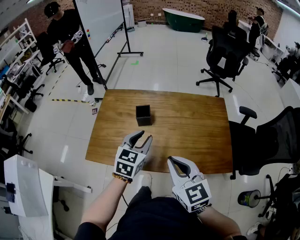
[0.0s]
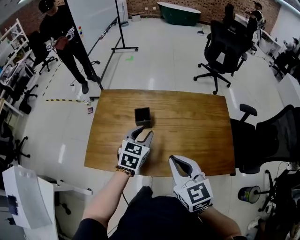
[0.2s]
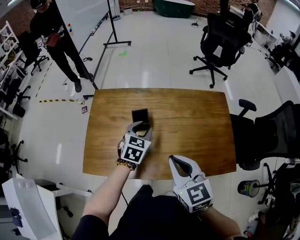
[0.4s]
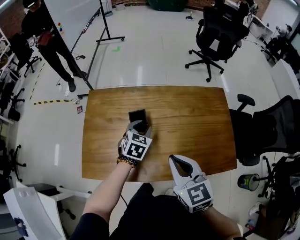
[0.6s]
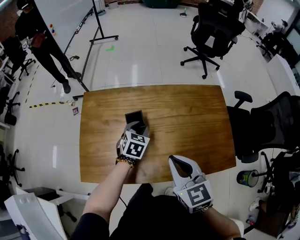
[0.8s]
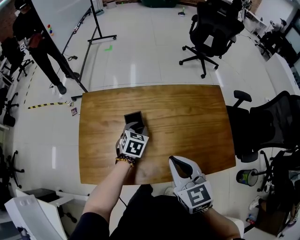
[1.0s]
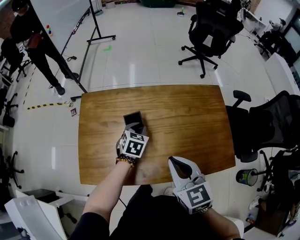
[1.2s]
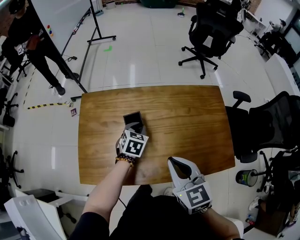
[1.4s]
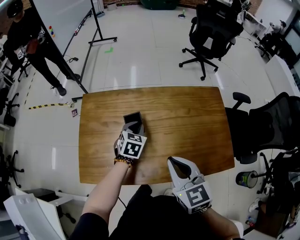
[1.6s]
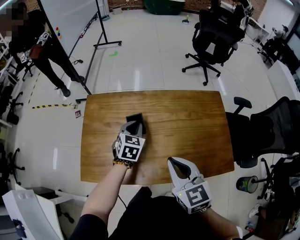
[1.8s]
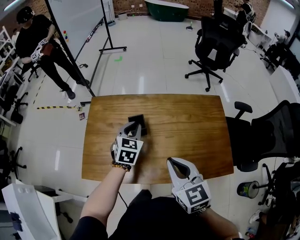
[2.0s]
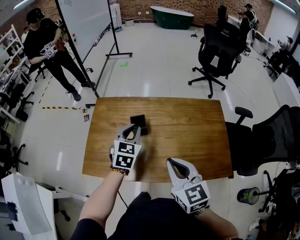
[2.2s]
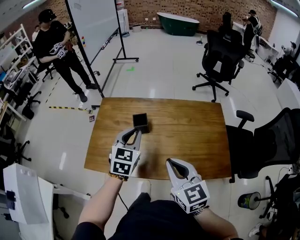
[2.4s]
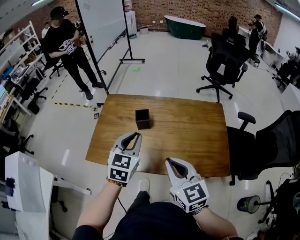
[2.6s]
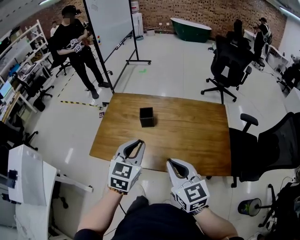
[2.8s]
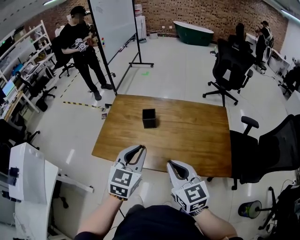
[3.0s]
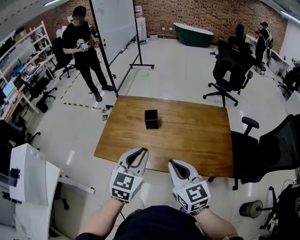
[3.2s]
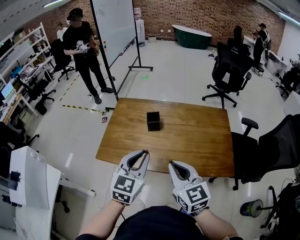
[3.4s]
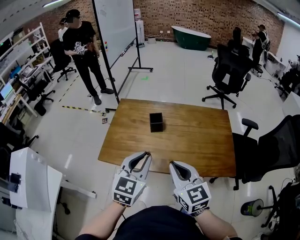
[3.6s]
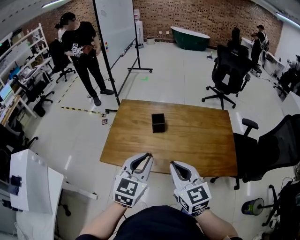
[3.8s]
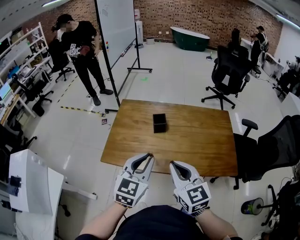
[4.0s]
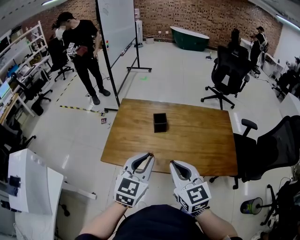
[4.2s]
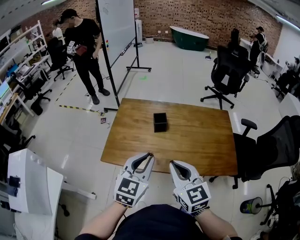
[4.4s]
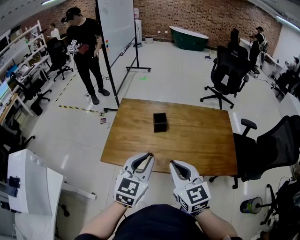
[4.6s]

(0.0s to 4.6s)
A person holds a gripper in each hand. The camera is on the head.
0.0s - 1.6s: The left gripper shifts some 25 cm forward and downward. Meanwhile the right gripper goes about 15 cm forward.
1.6s - 3.0s: The left gripper is displaced backward and upward by roughly 40 cm, and changes its angle by about 30 degrees. The right gripper goes some 20 cm backward.
3.0s - 4.6s: Both grippers travel together to the left, about 10 cm.

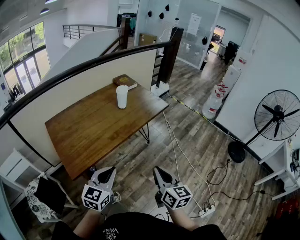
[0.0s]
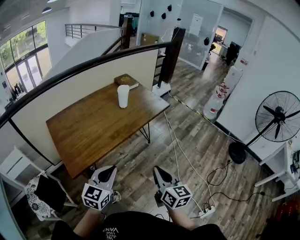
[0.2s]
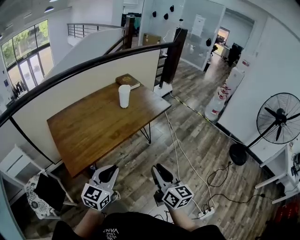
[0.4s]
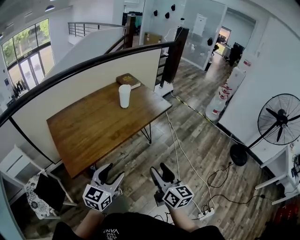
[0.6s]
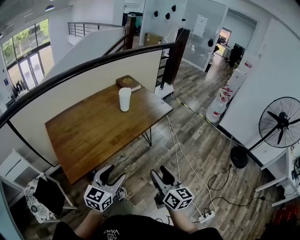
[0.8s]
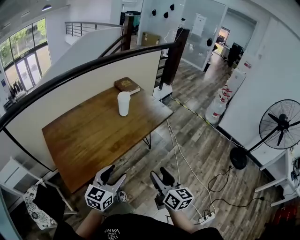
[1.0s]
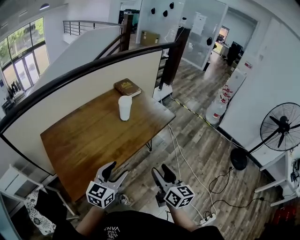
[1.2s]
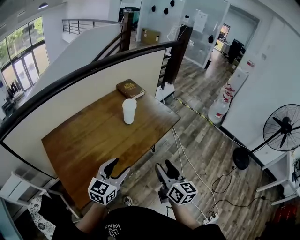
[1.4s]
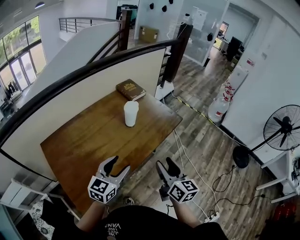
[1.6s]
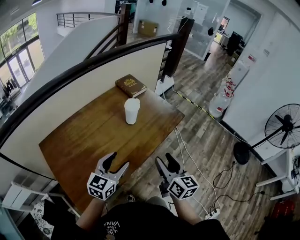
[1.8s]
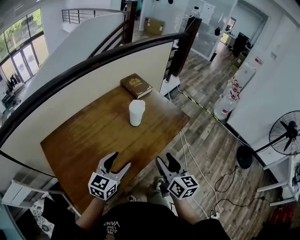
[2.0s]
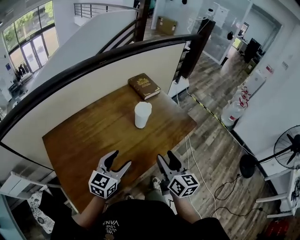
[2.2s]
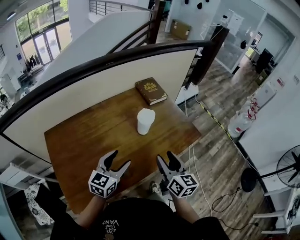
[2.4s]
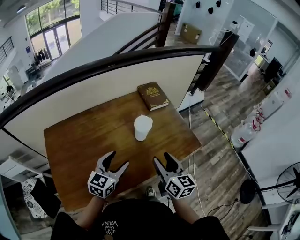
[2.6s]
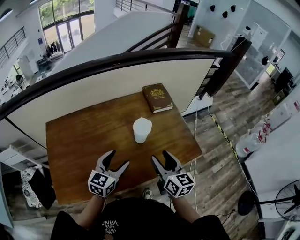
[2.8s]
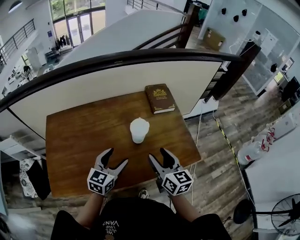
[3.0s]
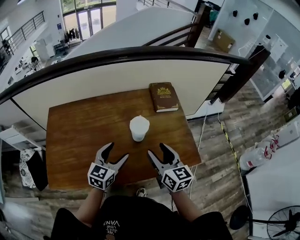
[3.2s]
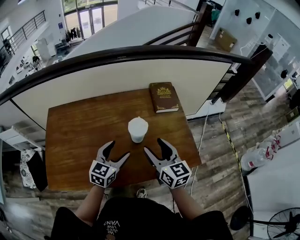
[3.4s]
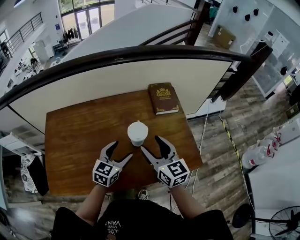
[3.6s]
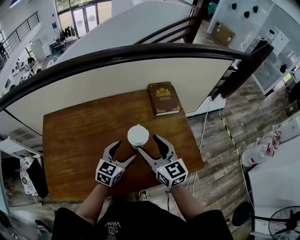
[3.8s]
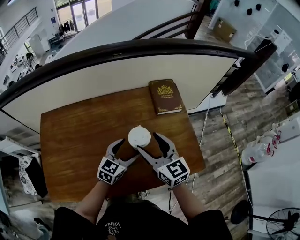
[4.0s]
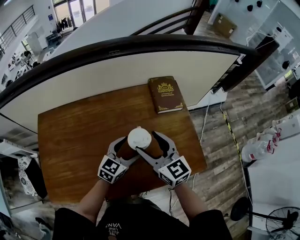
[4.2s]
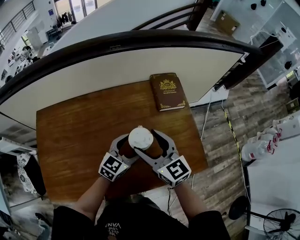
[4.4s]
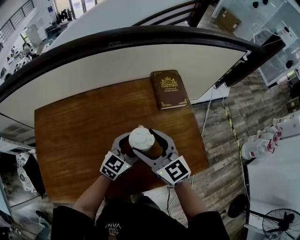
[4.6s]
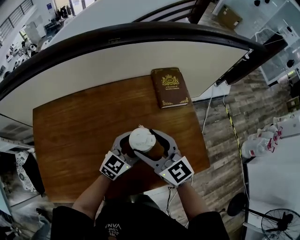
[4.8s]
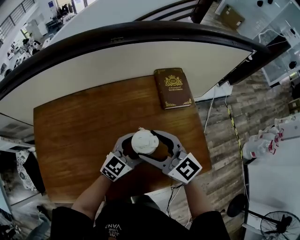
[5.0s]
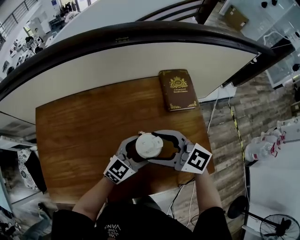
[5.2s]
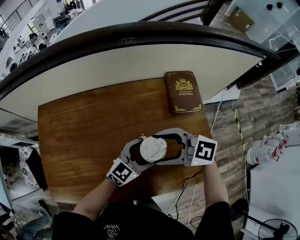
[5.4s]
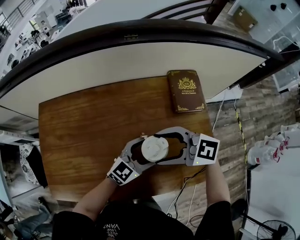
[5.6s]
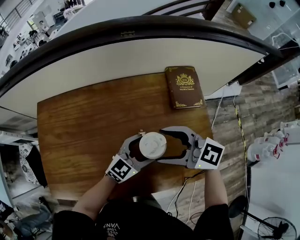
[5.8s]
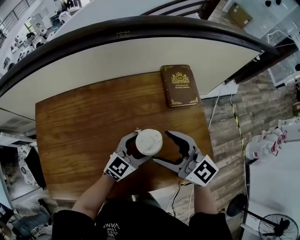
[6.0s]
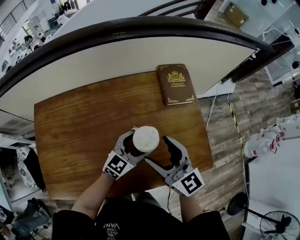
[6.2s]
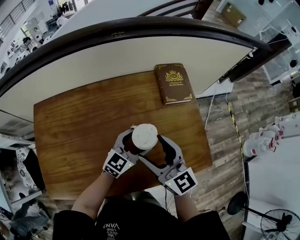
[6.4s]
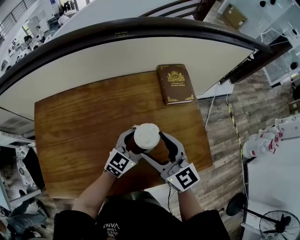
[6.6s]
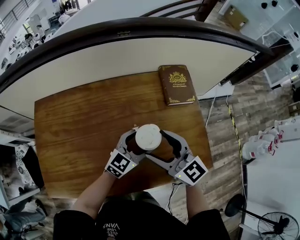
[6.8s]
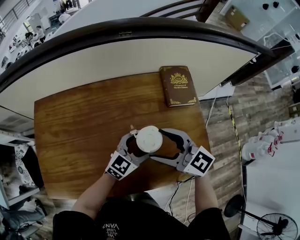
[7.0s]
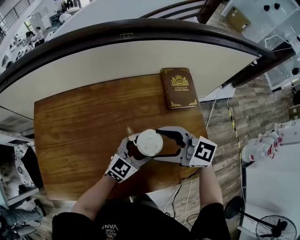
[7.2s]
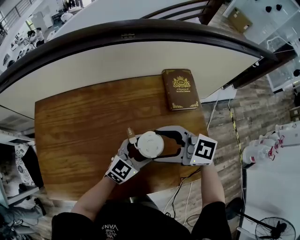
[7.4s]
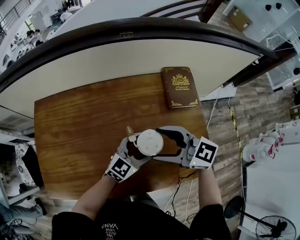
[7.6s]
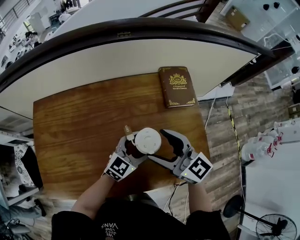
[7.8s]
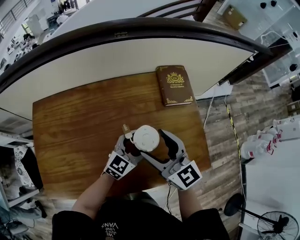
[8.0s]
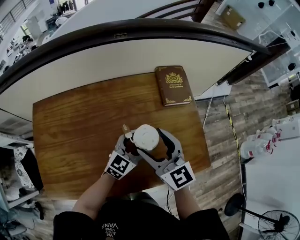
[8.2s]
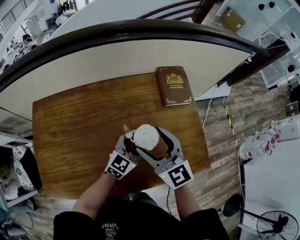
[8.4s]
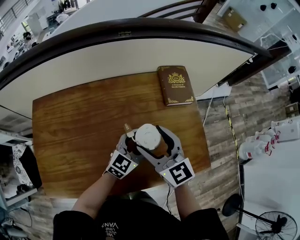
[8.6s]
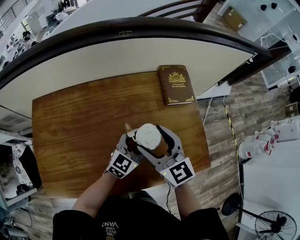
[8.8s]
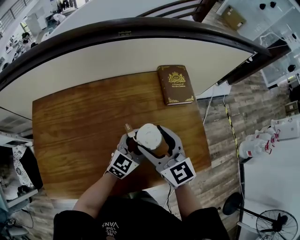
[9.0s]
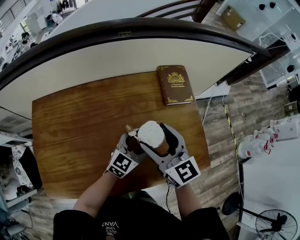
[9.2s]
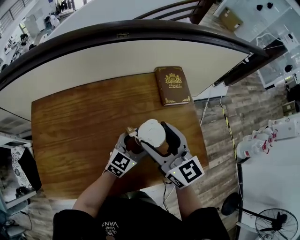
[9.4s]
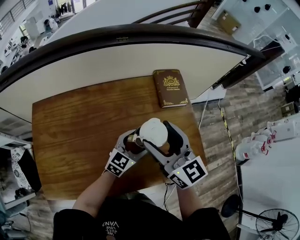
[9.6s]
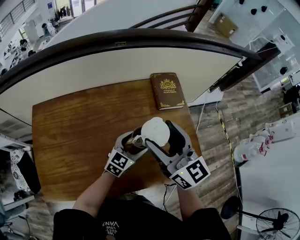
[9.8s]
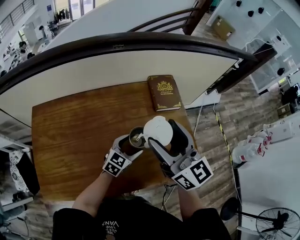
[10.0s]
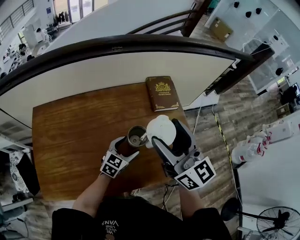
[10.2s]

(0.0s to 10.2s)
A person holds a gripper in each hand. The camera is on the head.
0.0s - 1.4s: The grippers both shift forward by about 20 cm. The left gripper opens; the right gripper opens.
1.4s - 3.0s: The left gripper changes place by approximately 25 cm, and changes its angle by roughly 30 degrees; the right gripper changes place by approximately 30 cm, and changes its angle by roughly 40 degrees.
3.0s - 4.4s: The left gripper shifts some 15 cm forward, to the right and downward, while the right gripper goes roughly 15 cm forward and to the left, and rotates approximately 20 degrees.
4.4s - 5.8s: The right gripper swivels approximately 40 degrees.
7.2s - 8.8s: The right gripper rotates approximately 40 degrees.
8.8s - 10.2s: The right gripper goes approximately 15 cm upward and to the right, and swivels approximately 20 degrees.

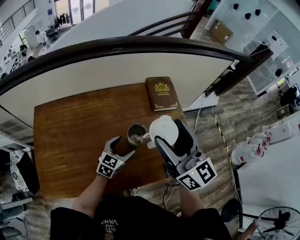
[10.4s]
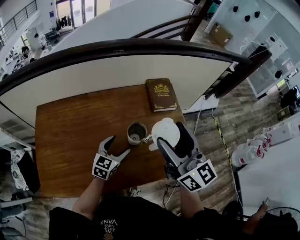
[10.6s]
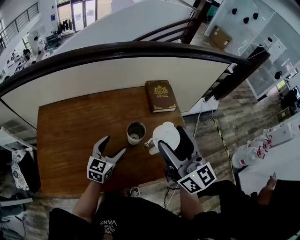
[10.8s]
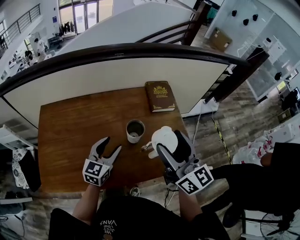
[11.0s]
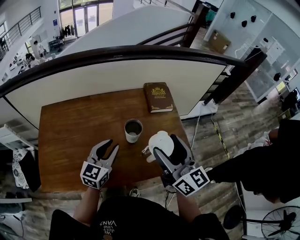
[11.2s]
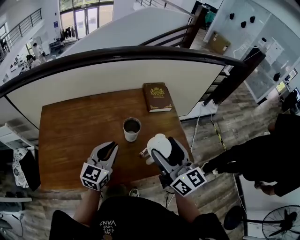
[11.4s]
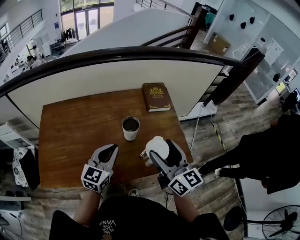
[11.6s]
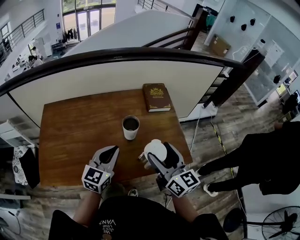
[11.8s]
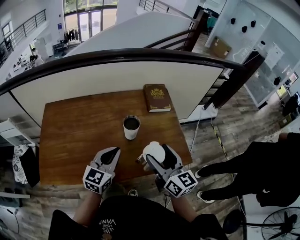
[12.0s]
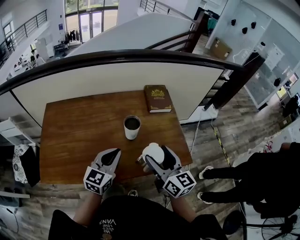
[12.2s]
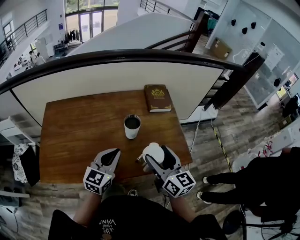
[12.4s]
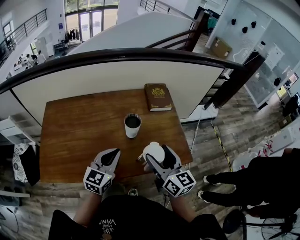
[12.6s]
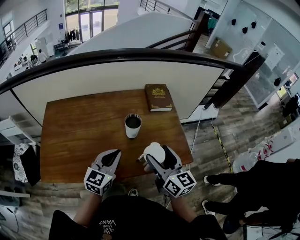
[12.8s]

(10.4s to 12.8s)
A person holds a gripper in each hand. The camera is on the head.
10.4s - 11.6s: The right gripper goes approximately 10 cm backward and downward. The left gripper is displaced upward and backward by roughly 15 cm, and closes up.
11.6s - 12.8s: The right gripper changes place by roughly 5 cm.

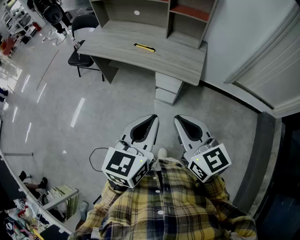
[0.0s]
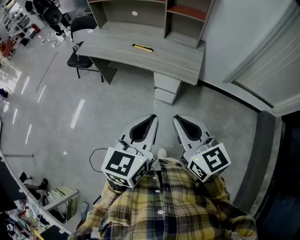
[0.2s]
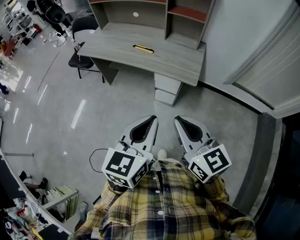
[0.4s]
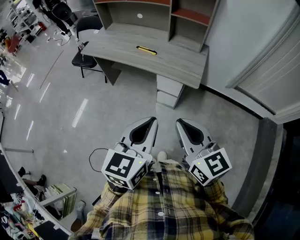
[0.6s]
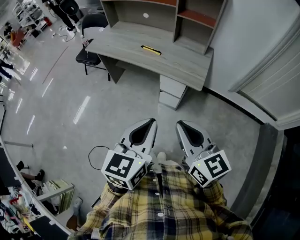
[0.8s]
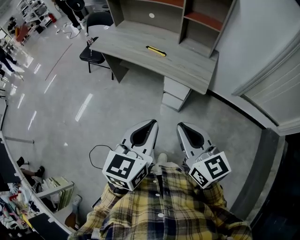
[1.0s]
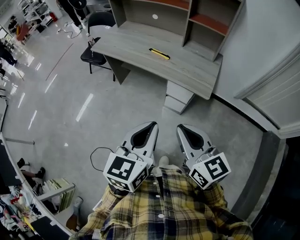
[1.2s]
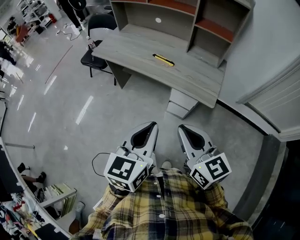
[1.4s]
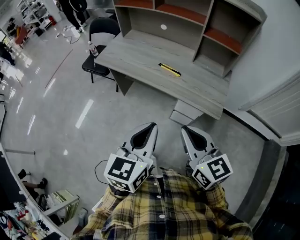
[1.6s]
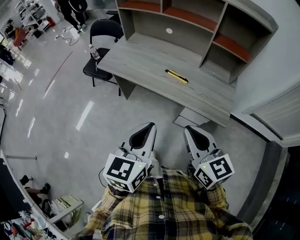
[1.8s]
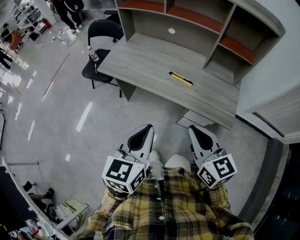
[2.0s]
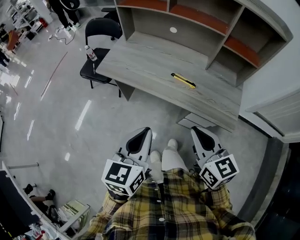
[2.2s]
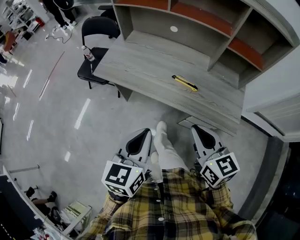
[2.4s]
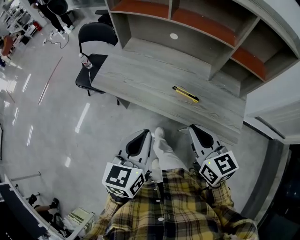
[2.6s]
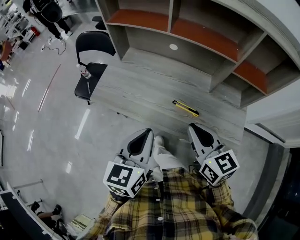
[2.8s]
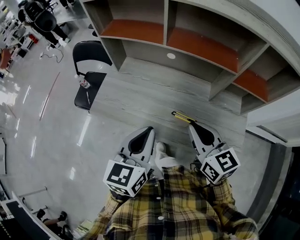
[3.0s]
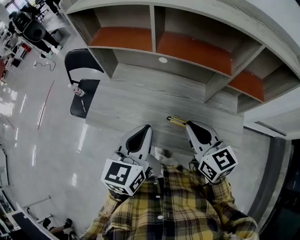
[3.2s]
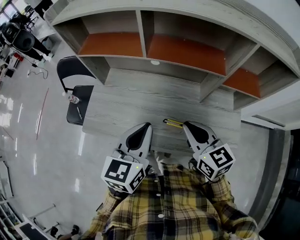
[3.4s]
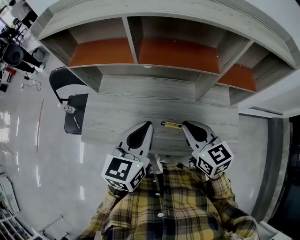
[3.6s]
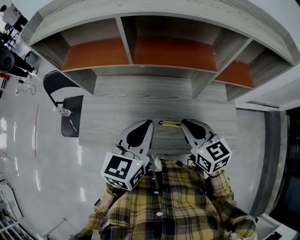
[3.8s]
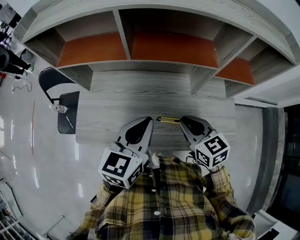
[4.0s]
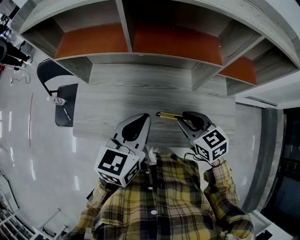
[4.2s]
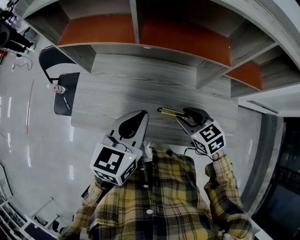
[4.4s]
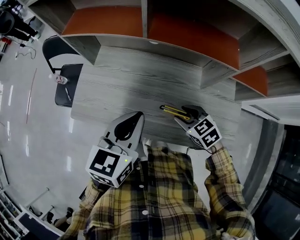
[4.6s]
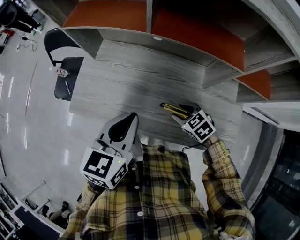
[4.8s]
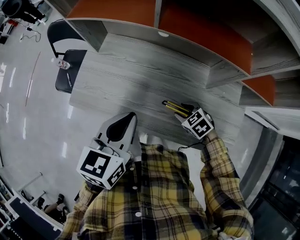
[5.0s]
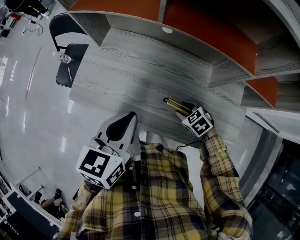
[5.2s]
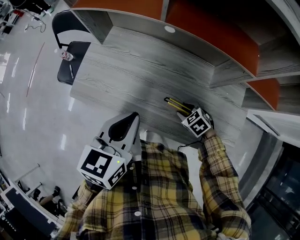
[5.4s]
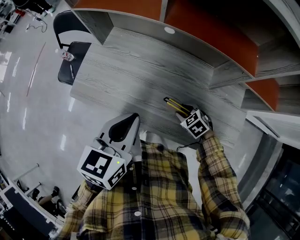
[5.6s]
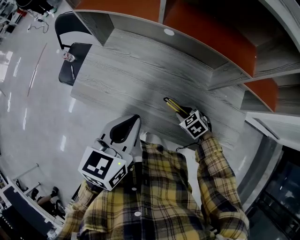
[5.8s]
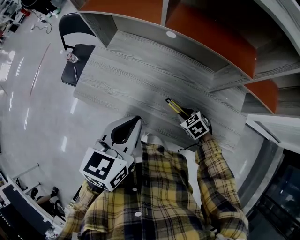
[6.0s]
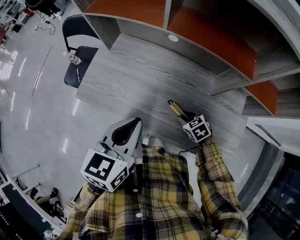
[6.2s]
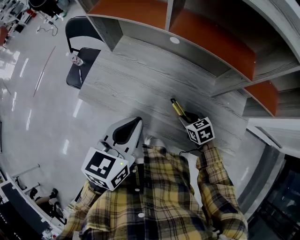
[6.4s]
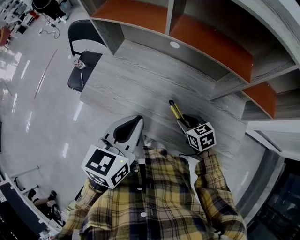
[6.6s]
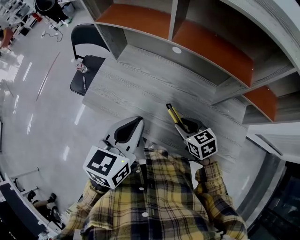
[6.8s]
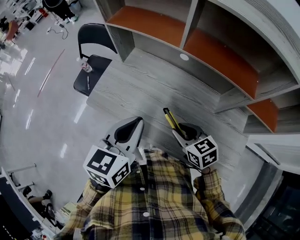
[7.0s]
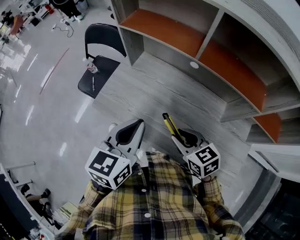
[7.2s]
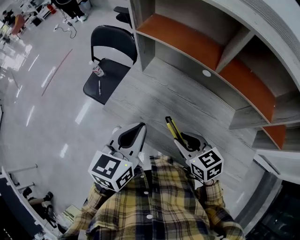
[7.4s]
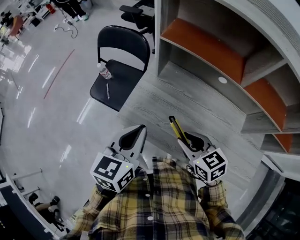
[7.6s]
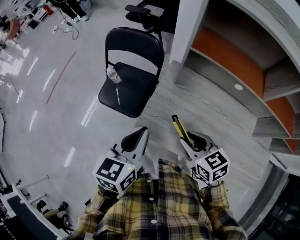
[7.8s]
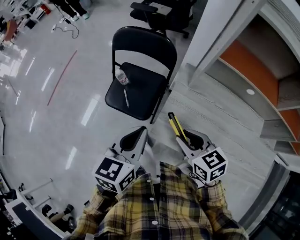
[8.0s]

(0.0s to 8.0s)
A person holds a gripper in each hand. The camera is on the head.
0.0s - 1.6s: The two grippers go approximately 20 cm forward and to the left.
1.6s - 3.2s: The two grippers travel together, forward, about 40 cm.
3.2s - 4.8s: The right gripper moves downward, roughly 25 cm, angles its fingers downward, by roughly 40 degrees, and opens its fingers, while the left gripper travels forward by about 5 cm.
6.4s - 8.0s: The pair of grippers is taken to the left and forward, approximately 50 cm.
